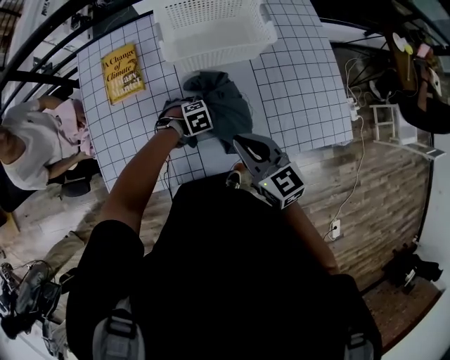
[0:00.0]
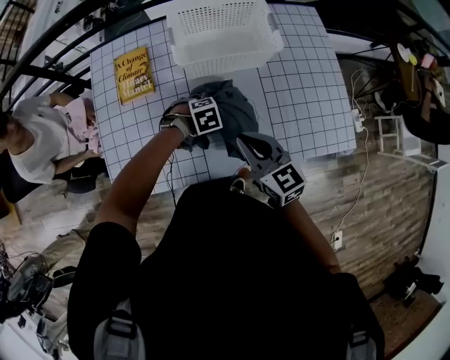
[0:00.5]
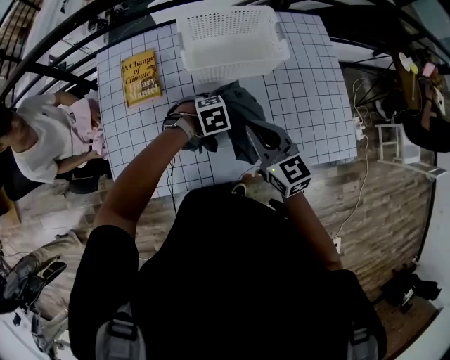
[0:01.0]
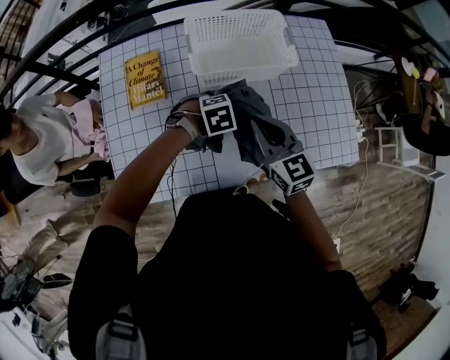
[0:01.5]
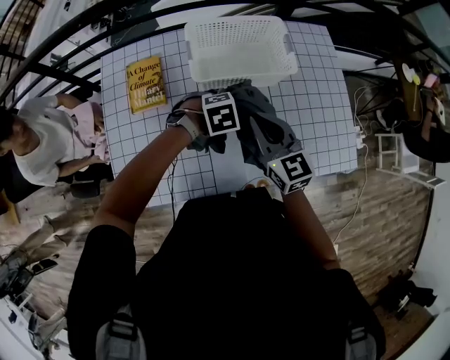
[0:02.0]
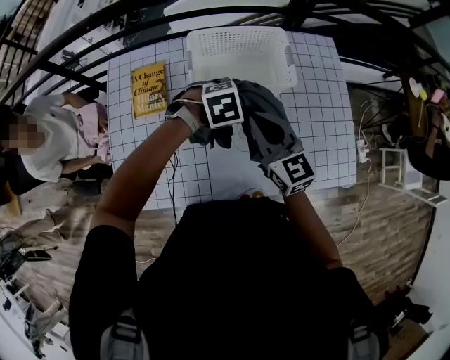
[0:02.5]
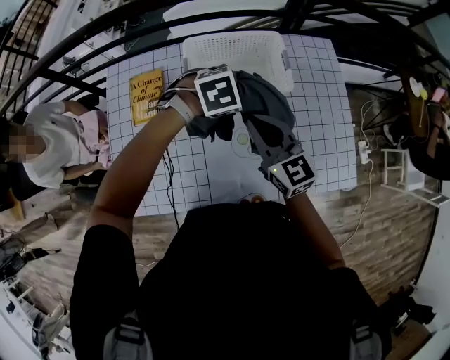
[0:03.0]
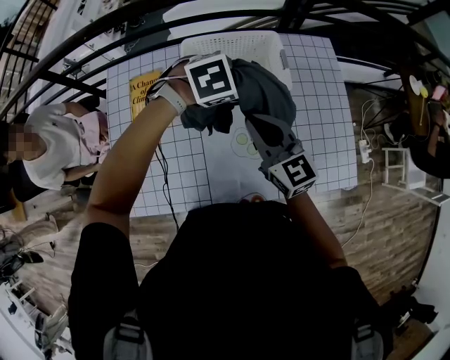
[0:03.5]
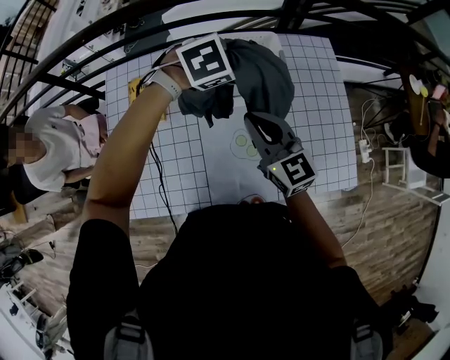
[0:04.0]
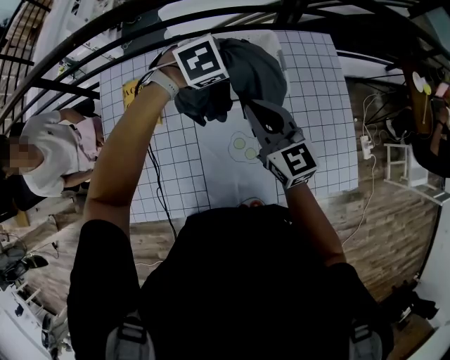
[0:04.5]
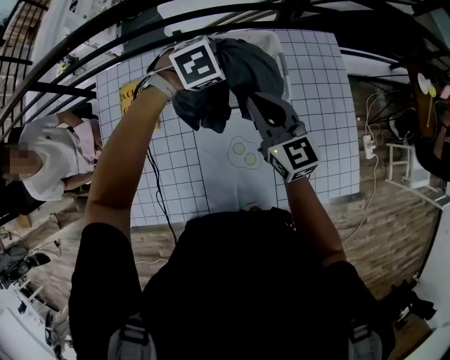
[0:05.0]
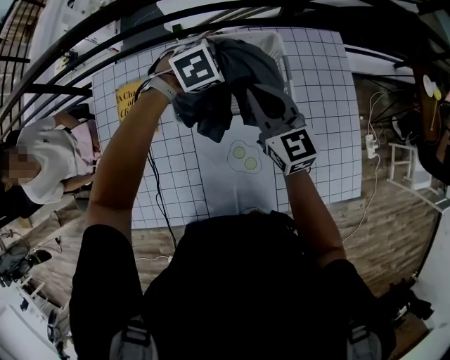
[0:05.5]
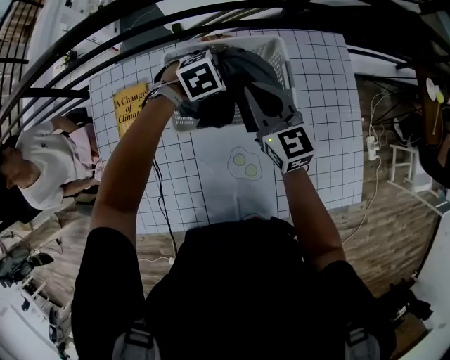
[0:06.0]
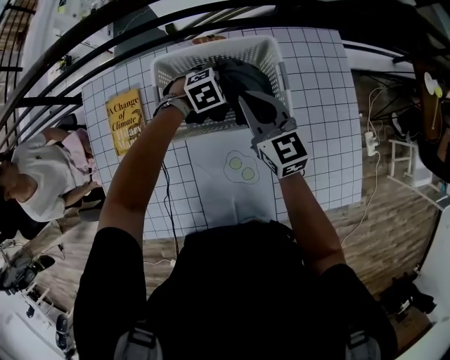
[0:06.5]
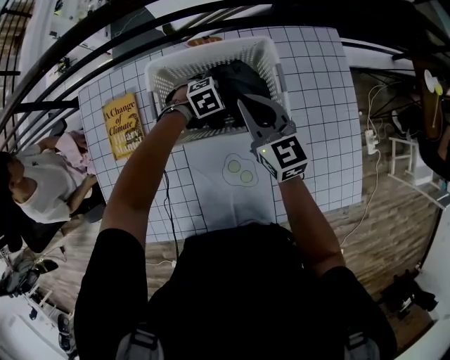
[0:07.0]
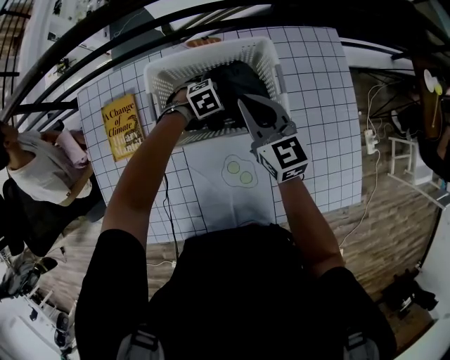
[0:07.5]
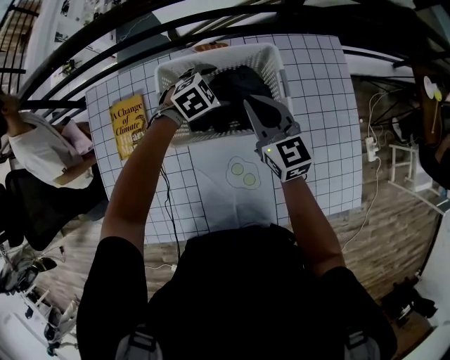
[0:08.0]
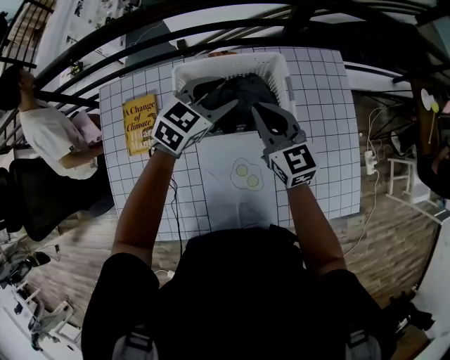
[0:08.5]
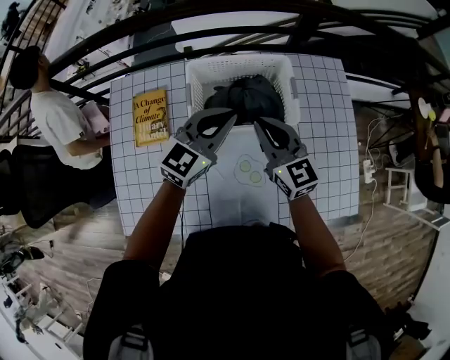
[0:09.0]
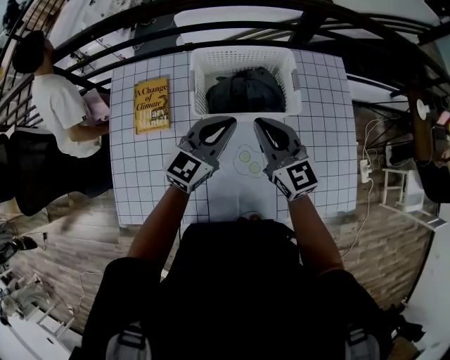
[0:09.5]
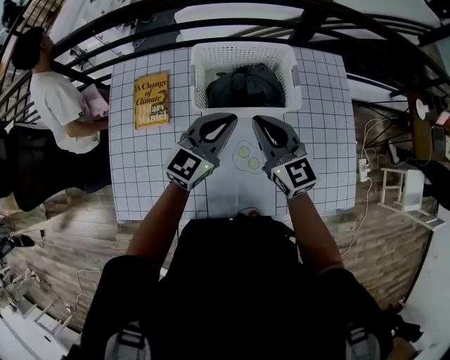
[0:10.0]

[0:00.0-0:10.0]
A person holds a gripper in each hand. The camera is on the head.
0:00.0 to 0:02.0: The right gripper shifts by approximately 10 cm. Meanwhile the left gripper travels upward by approximately 15 cm.
0:02.0 to 0:04.0: The right gripper shifts approximately 5 cm forward; the left gripper is displaced forward and upward by some 20 cm.
0:04.0 to 0:06.0: The left gripper goes roughly 20 cm downward and forward, while the right gripper goes roughly 20 cm forward and downward.
0:06.0 to 0:08.0: The left gripper moves some 15 cm downward and comes back.
0:08.0 to 0:10.0: The right gripper shifts approximately 15 cm backward and upward. The left gripper heads backward and upward, covering some 30 cm, angles its fingers upward, by about 50 degrees, and closes its fingers.

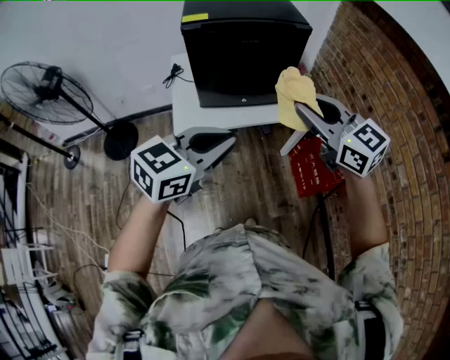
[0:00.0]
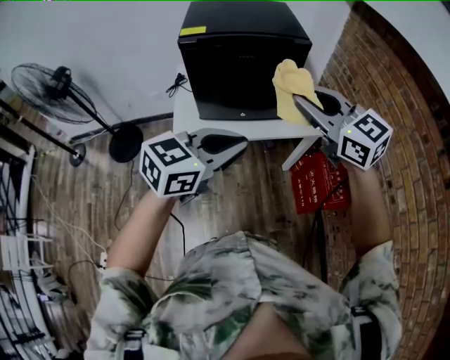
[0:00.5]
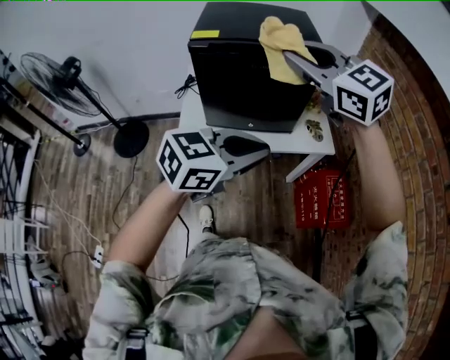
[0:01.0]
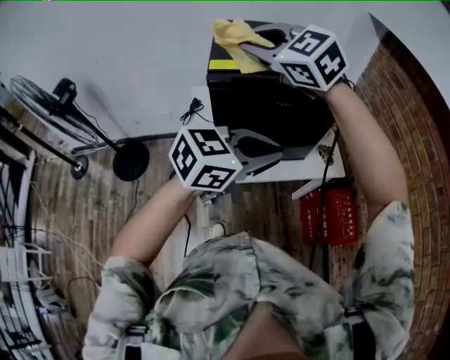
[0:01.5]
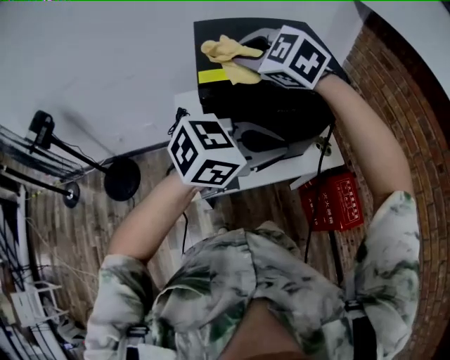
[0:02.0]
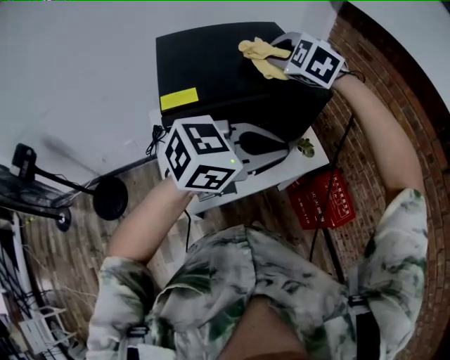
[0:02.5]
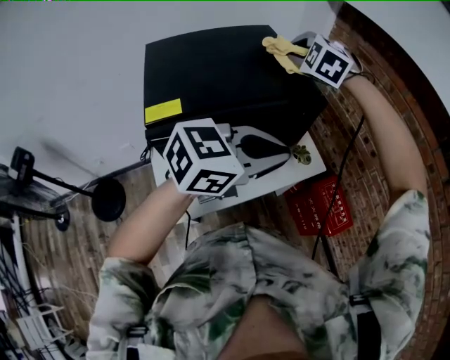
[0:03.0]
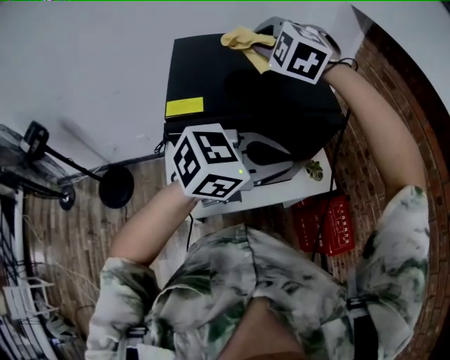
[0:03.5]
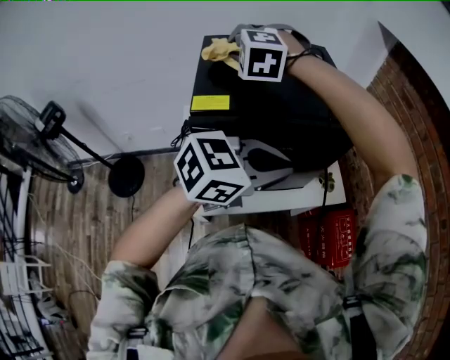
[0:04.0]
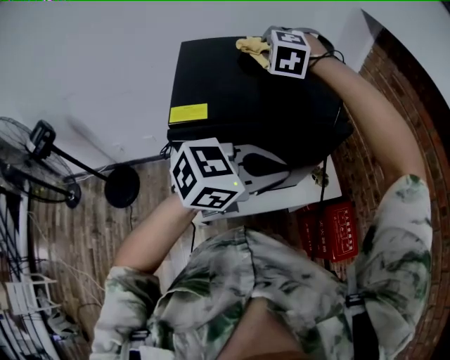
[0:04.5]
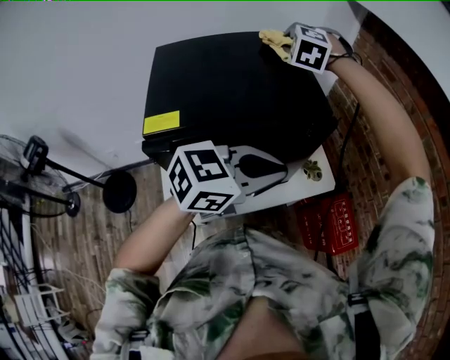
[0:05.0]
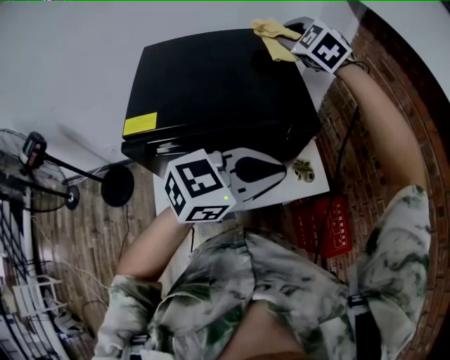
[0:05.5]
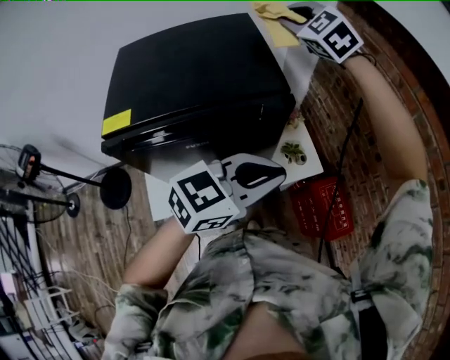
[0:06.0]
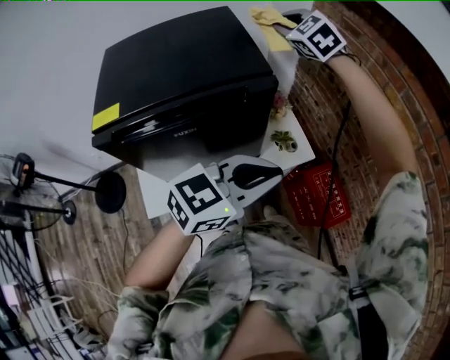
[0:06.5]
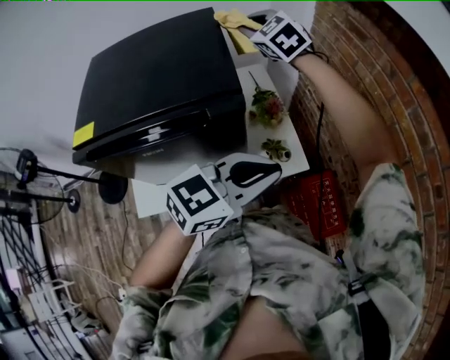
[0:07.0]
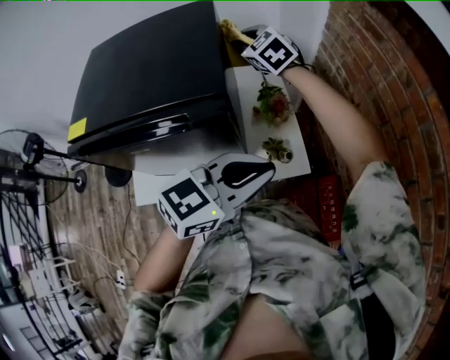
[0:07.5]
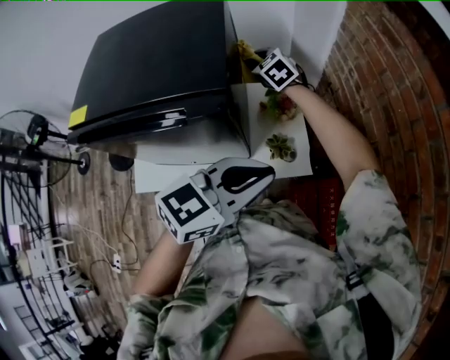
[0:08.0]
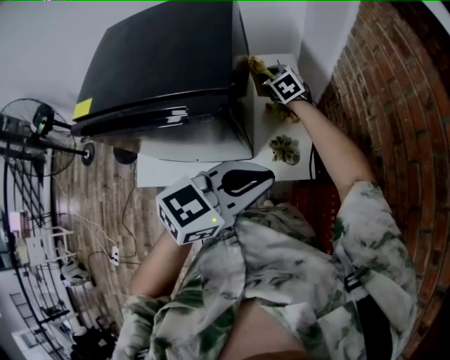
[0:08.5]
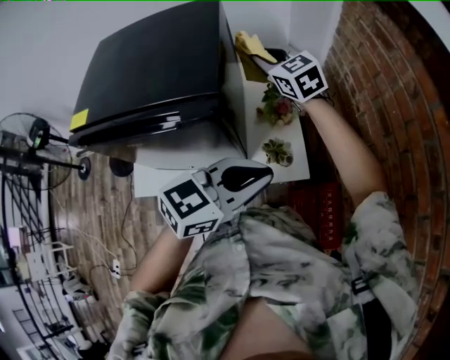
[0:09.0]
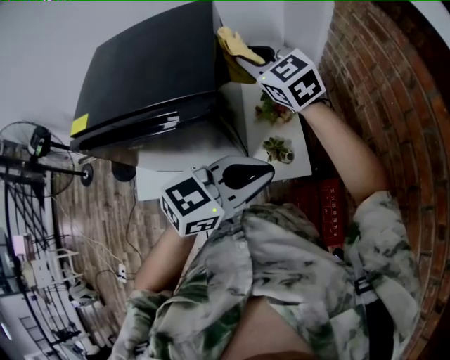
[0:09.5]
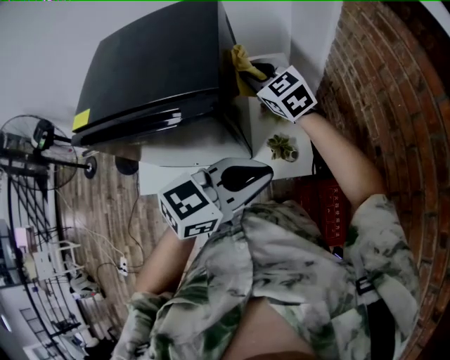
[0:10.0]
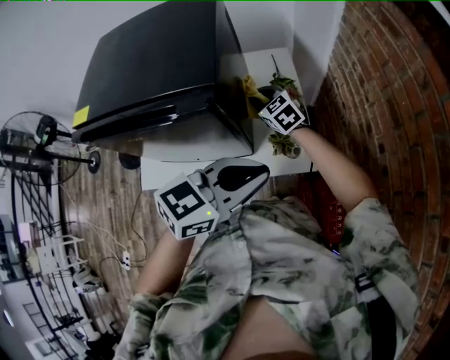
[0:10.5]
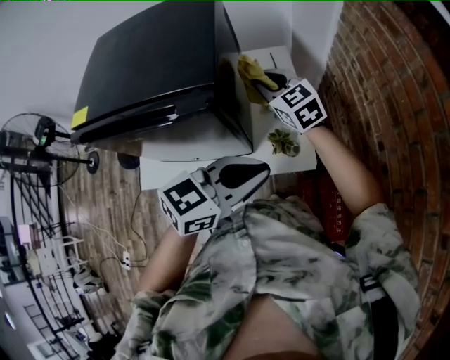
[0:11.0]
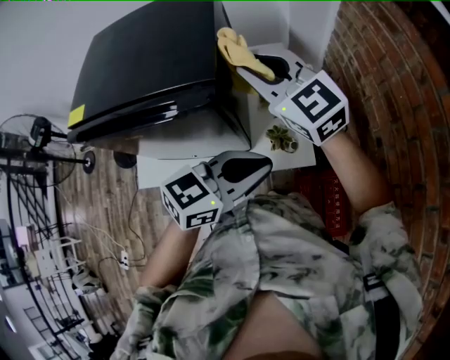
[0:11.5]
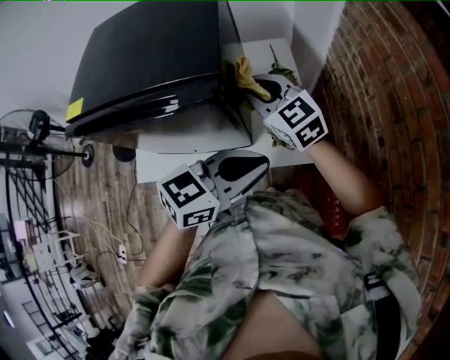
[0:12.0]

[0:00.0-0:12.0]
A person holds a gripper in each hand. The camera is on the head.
0:00.0 to 0:02.0: The right gripper travels forward and to the left by some 40 cm, and rotates about 40 degrees, while the left gripper is displaced forward by about 20 cm, and turns by roughly 20 degrees.
0:02.0 to 0:04.0: The grippers both shift forward by about 10 cm. The right gripper travels to the right and back again, roughly 20 cm each way, and changes its angle by some 30 degrees.
0:04.0 to 0:06.0: The right gripper moves to the right and forward, some 35 cm, and rotates about 40 degrees. Meanwhile the left gripper shifts about 15 cm to the right and forward.
0:06.0 to 0:08.0: The left gripper travels to the right, forward and downward by roughly 15 cm, while the right gripper goes roughly 30 cm downward, and changes its angle by approximately 30 degrees.
0:08.0 to 0:10.0: The right gripper swings up and down, about 25 cm each way, with 2 reversals.
0:10.0 to 0:12.0: The right gripper moves up and down over approximately 25 cm, changing direction 2 times.

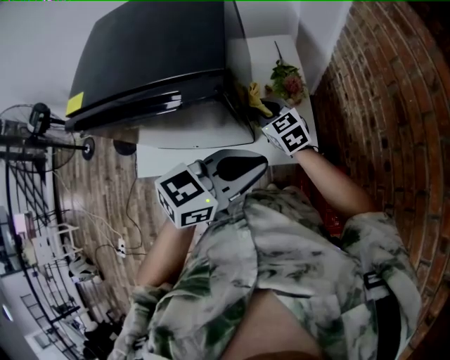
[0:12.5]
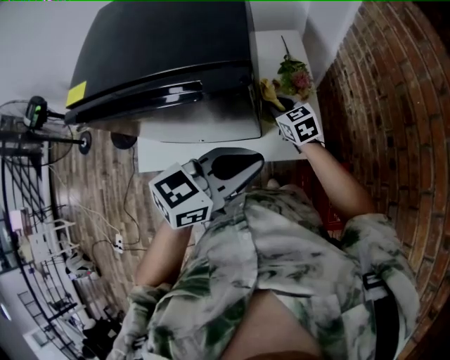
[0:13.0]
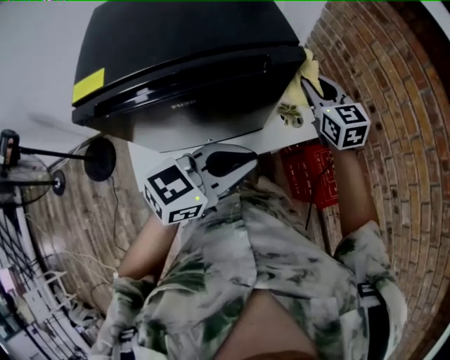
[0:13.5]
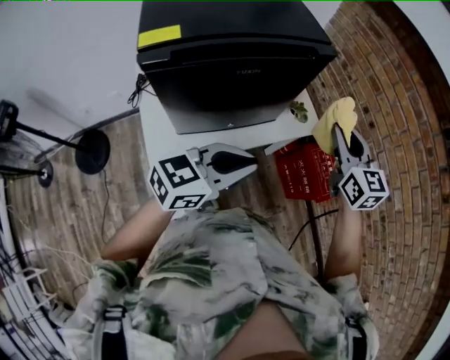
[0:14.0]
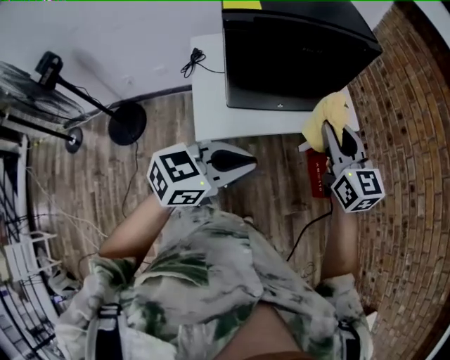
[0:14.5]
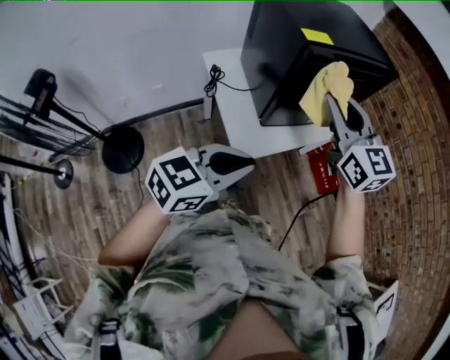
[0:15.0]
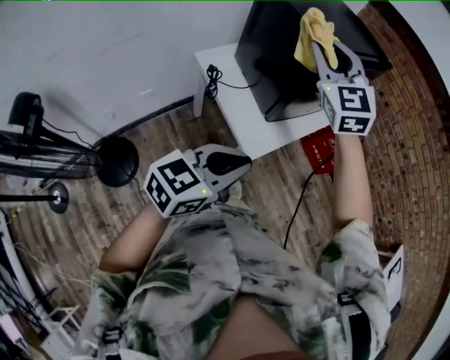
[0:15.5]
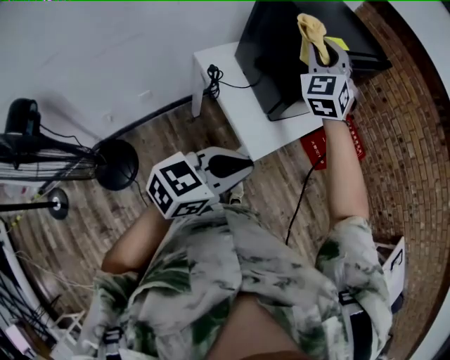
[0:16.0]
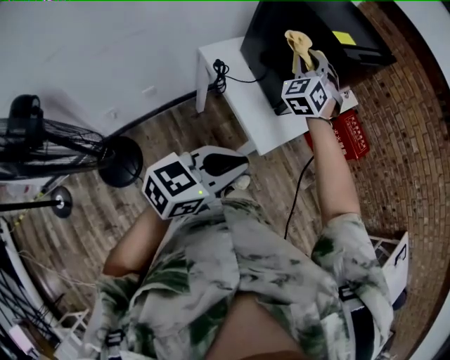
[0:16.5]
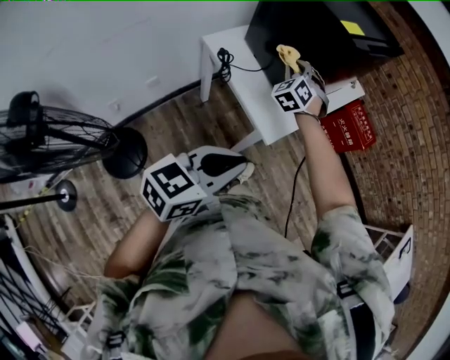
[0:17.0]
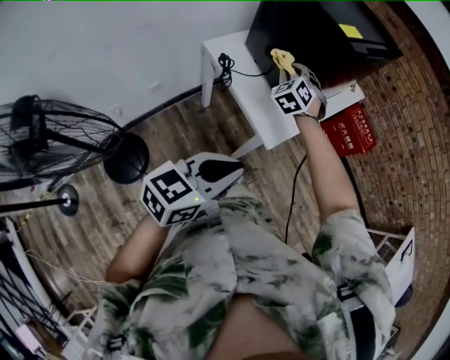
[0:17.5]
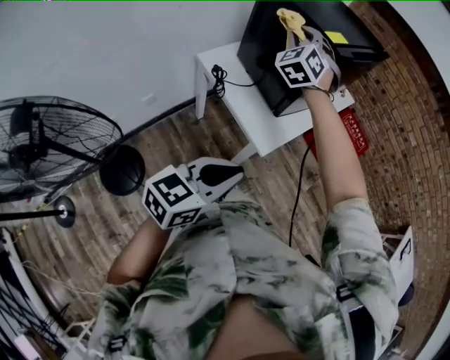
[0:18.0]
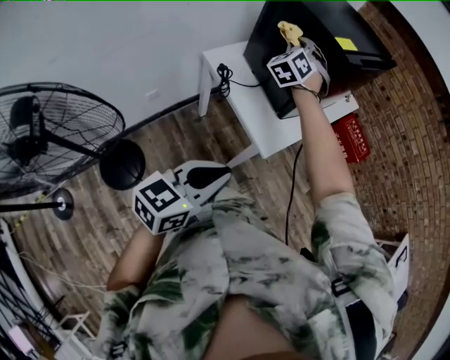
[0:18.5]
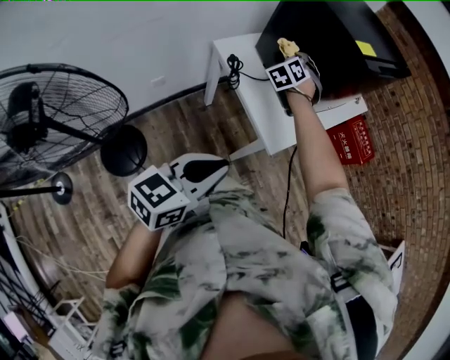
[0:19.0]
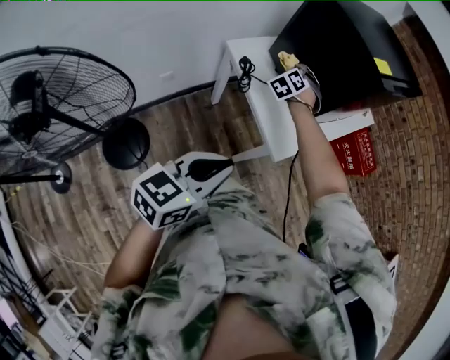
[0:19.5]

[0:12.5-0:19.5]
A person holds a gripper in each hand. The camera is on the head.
0:12.5 to 0:14.5: The right gripper moves some 40 cm, and rotates approximately 30 degrees. Meanwhile the left gripper changes place by about 50 cm.
0:14.5 to 0:16.0: The right gripper shifts by about 40 cm, and rotates about 70 degrees. The left gripper changes place by approximately 35 cm.
0:16.0 to 0:17.5: The right gripper shifts roughly 25 cm downward, and rotates about 30 degrees, while the left gripper is displaced backward by approximately 5 cm.
0:17.5 to 0:19.5: Both grippers move to the left, about 10 cm. The right gripper travels upward and back again, approximately 20 cm each way.
